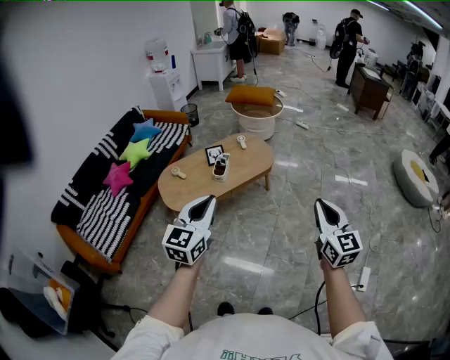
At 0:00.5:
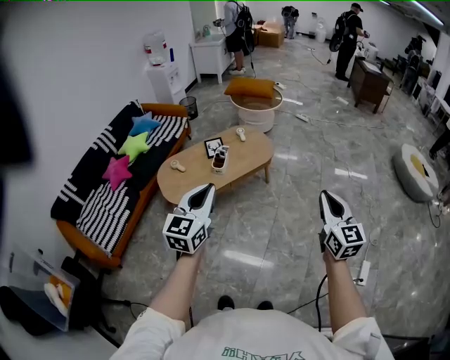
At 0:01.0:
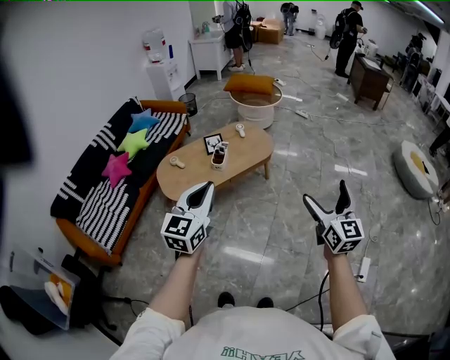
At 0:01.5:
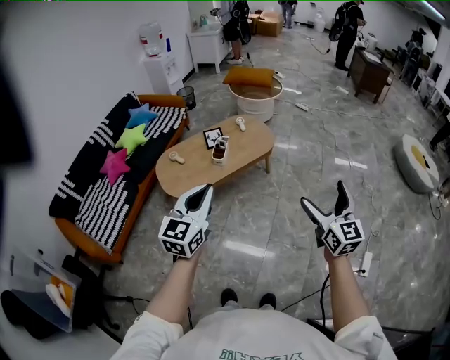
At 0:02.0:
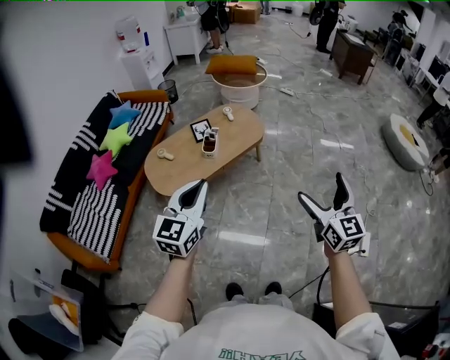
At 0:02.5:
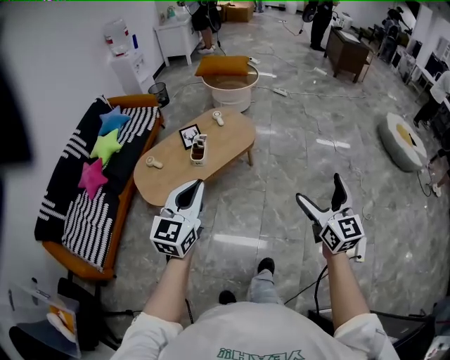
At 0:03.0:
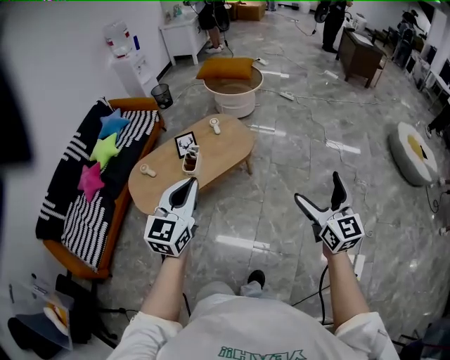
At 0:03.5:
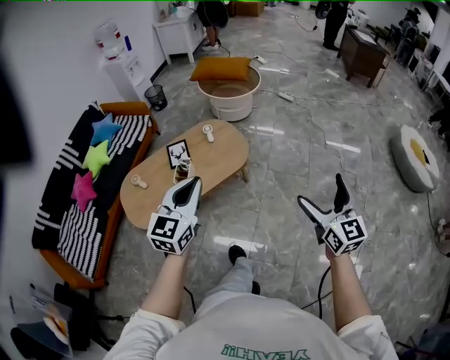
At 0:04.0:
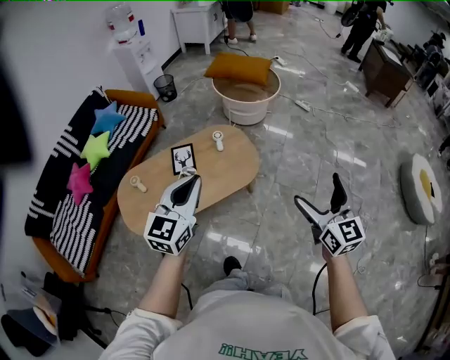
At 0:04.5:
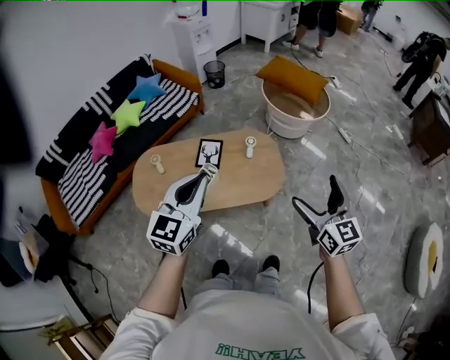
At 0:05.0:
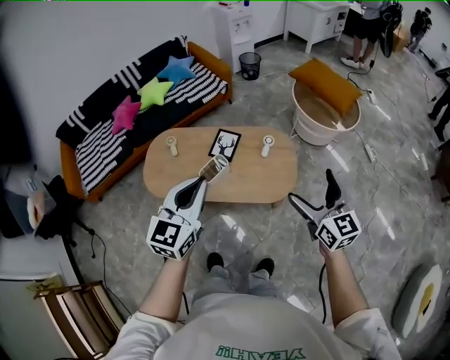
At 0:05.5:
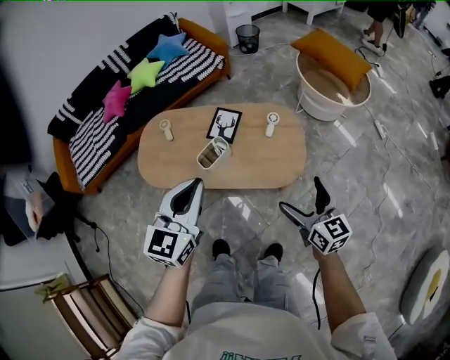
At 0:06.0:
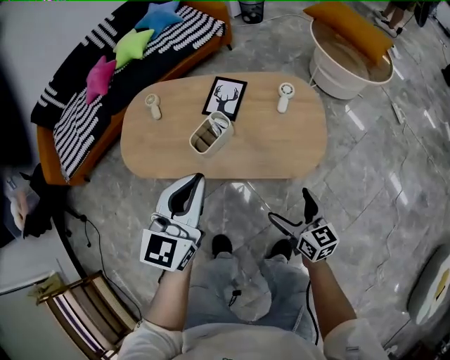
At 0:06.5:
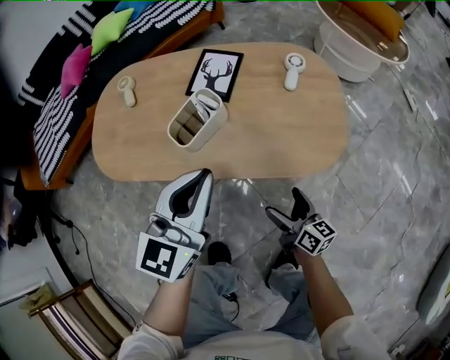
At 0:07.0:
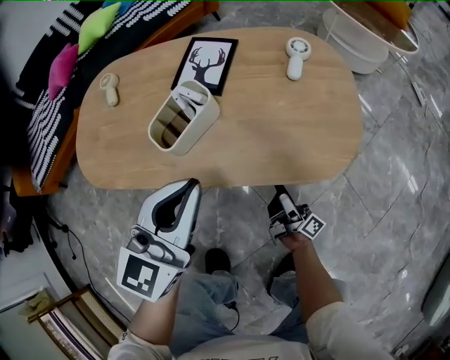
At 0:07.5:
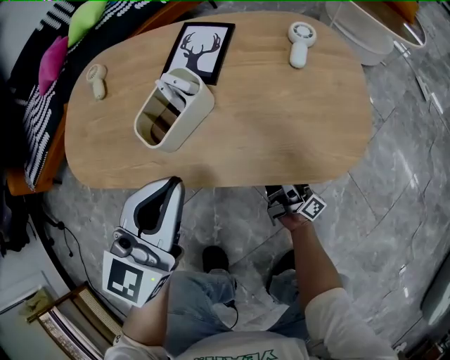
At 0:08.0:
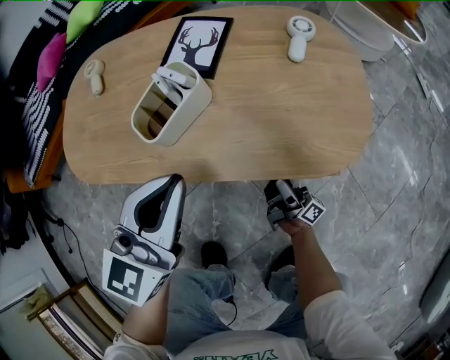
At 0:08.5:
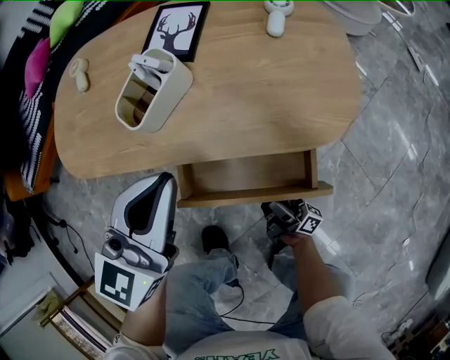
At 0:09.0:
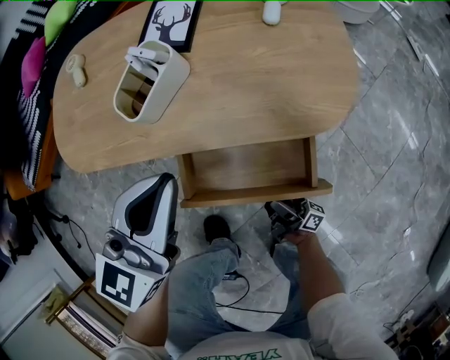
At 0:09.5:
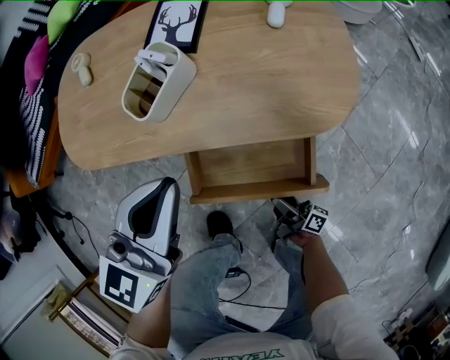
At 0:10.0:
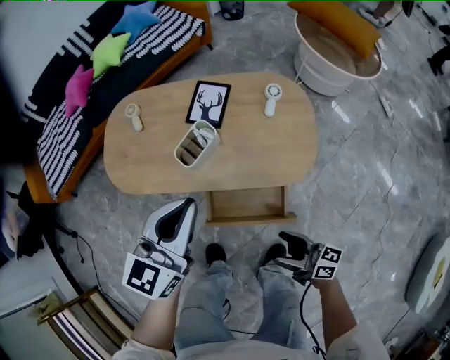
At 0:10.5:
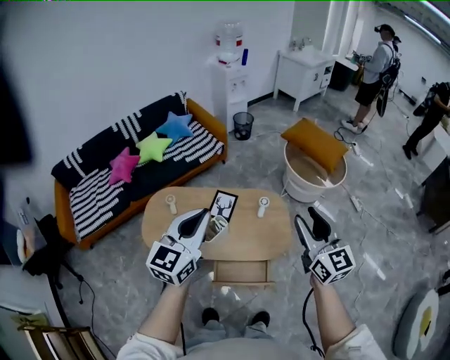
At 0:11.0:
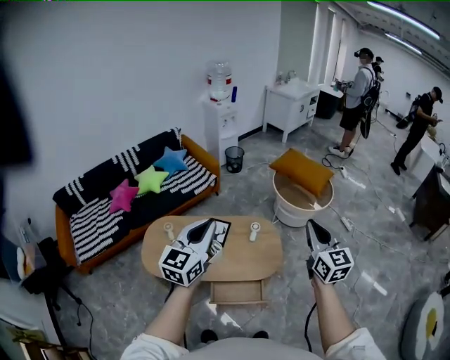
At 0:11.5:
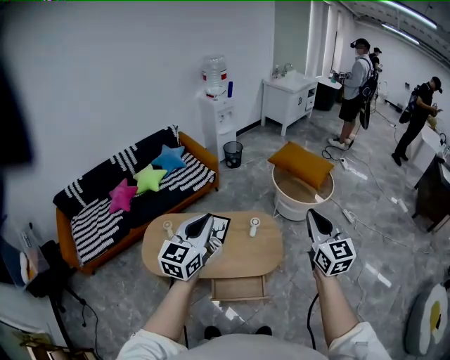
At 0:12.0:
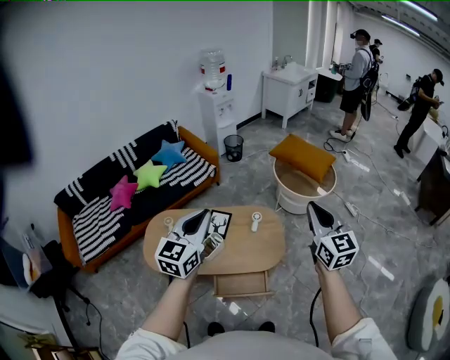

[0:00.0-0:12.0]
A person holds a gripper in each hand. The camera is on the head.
0:00.0 to 0:02.0: The right gripper ends up some 5 cm from where it was, and opens up; the left gripper travels to the left by some 5 cm.
0:02.0 to 0:04.0: The pair of grippers is taken forward, some 50 cm.
0:04.0 to 0:06.0: The right gripper moves downward, some 40 cm, and rotates approximately 50 degrees, while the left gripper shifts roughly 25 cm downward, and swivels about 30 degrees.
0:06.0 to 0:08.0: The grippers both shift downward by roughly 25 cm. The right gripper points its fingers approximately 40 degrees further upward.
0:08.0 to 0:10.0: The left gripper heads upward, covering about 20 cm; the right gripper is displaced upward and backward by about 35 cm, and swivels about 50 degrees.
0:10.0 to 0:12.0: The left gripper heads upward, covering about 30 cm; the right gripper goes roughly 50 cm upward, rotates some 70 degrees, and closes up.

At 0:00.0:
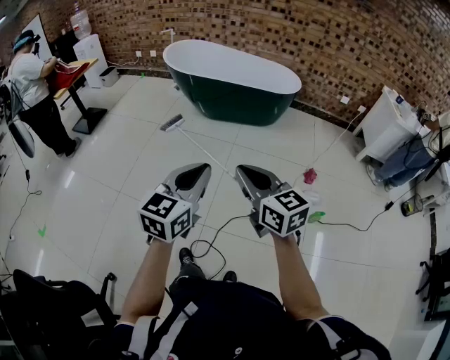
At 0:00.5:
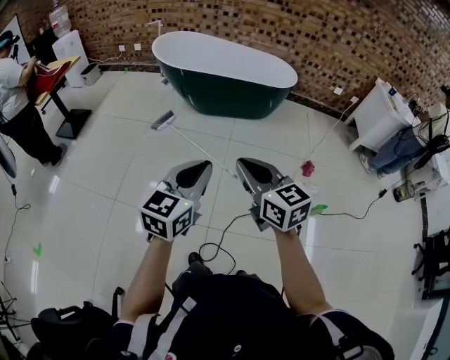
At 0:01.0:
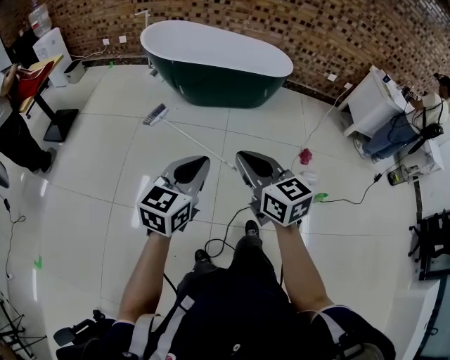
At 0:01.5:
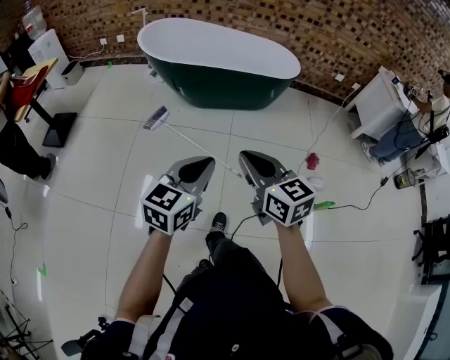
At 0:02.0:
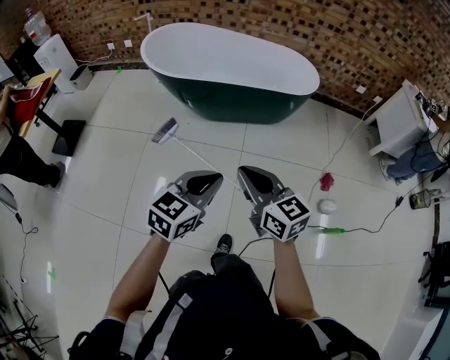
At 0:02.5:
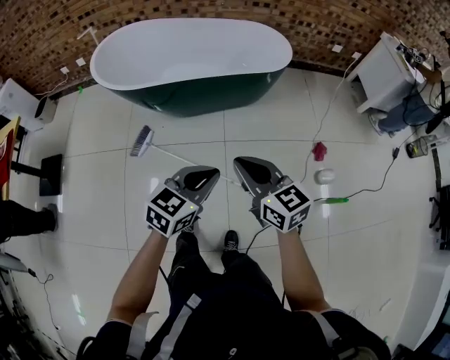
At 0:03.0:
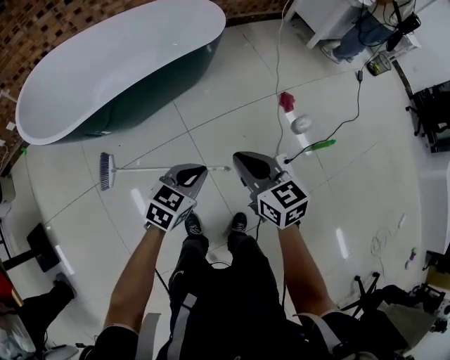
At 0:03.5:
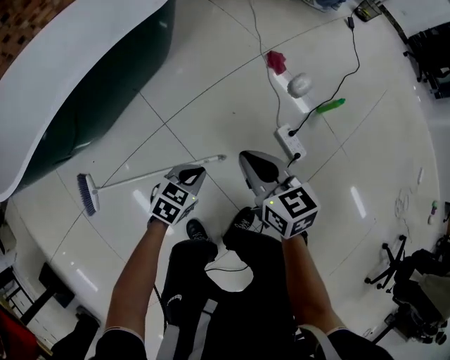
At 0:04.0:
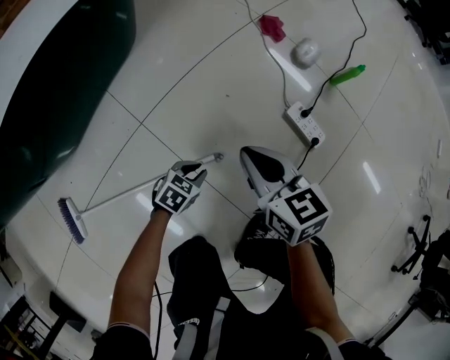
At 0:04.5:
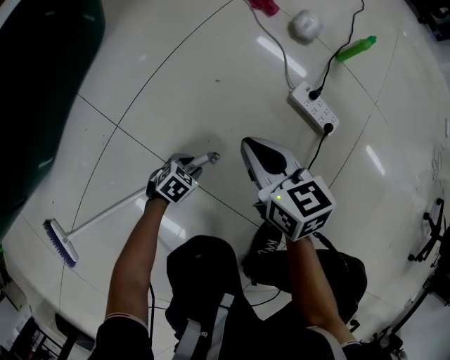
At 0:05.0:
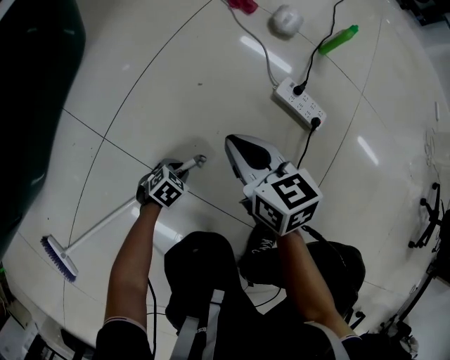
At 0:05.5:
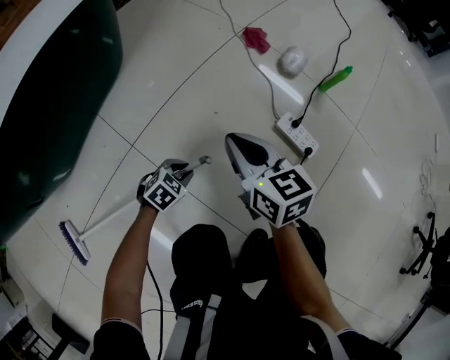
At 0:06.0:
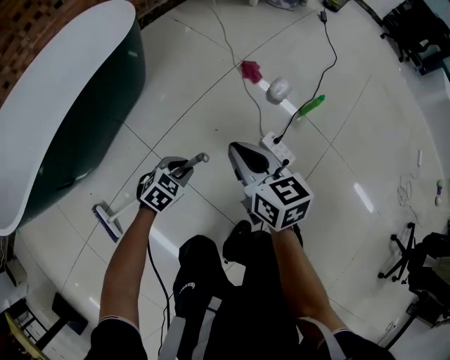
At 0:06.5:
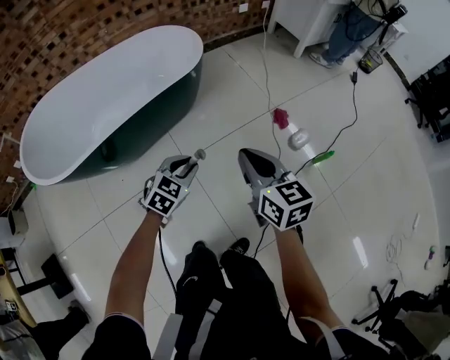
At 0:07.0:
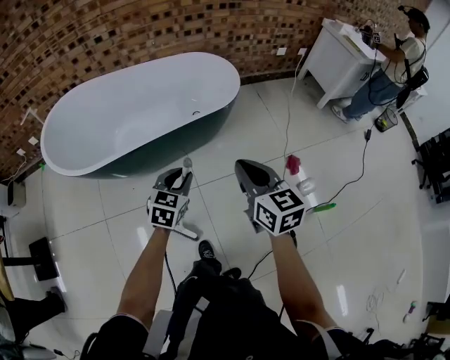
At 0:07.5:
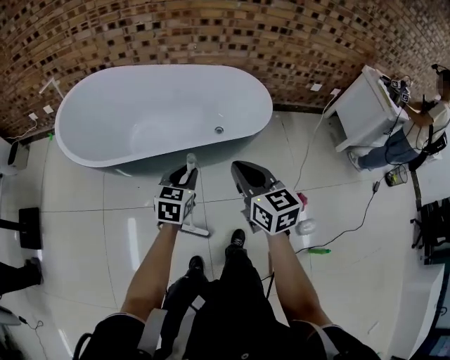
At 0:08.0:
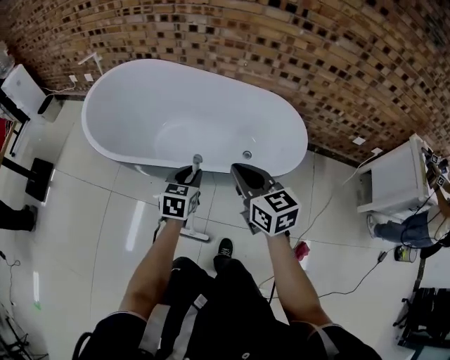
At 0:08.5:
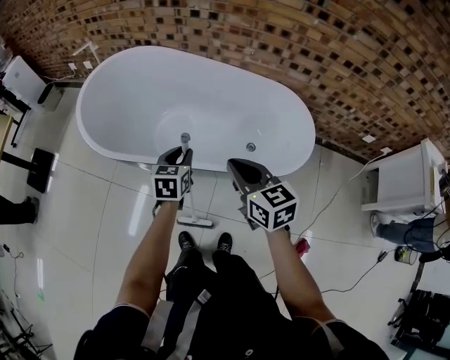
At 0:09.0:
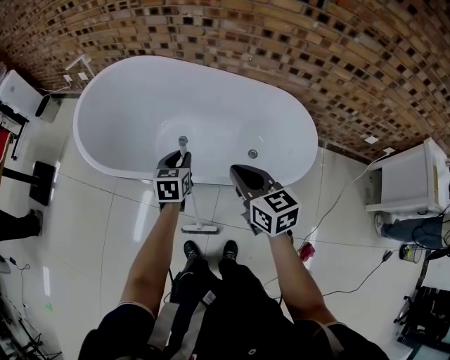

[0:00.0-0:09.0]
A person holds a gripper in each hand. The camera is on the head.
0:00.0 to 0:02.0: The two grippers go about 35 cm forward. The left gripper turns by some 20 degrees.
0:02.0 to 0:04.5: The two grippers go roughly 80 cm downward. The left gripper points its fingers some 40 degrees further downward, and opens. The right gripper turns by some 70 degrees.
0:04.5 to 0:07.0: Both grippers travel together upward, about 70 cm. The left gripper swivels approximately 70 degrees; the right gripper rotates roughly 40 degrees.
0:07.0 to 0:09.0: The right gripper moves approximately 40 cm, and rotates approximately 40 degrees, while the left gripper shifts by about 35 cm, and swivels about 50 degrees.

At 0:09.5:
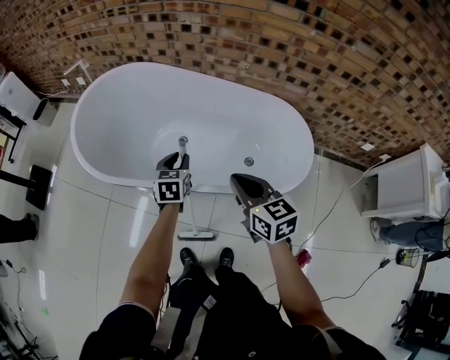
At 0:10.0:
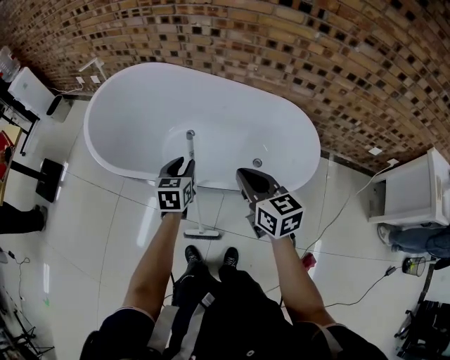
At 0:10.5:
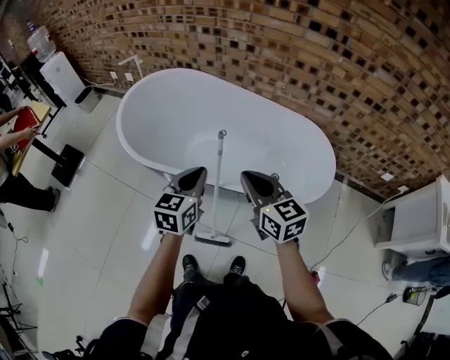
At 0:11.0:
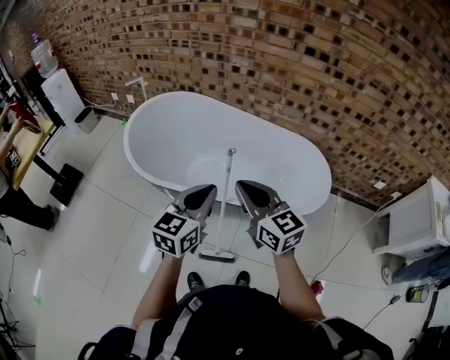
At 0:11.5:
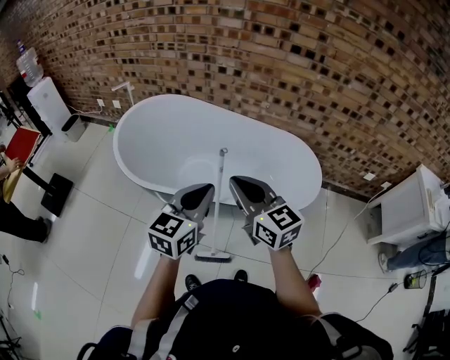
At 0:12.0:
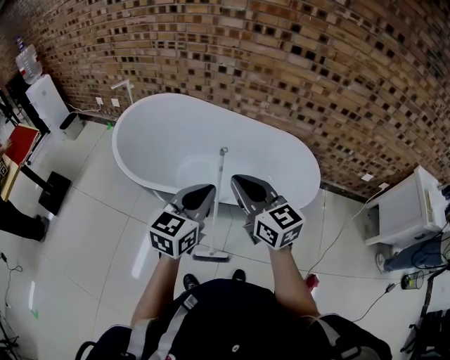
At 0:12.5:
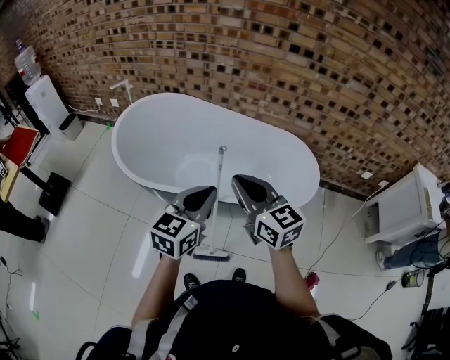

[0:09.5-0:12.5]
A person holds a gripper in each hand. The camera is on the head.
0:09.5 to 0:11.0: The left gripper goes roughly 30 cm upward and backward, rotates approximately 30 degrees, and closes up; the right gripper shifts about 20 cm upward, to the left and backward, and changes its angle by about 20 degrees.
0:11.0 to 0:12.5: There are only small adjustments of the grippers.

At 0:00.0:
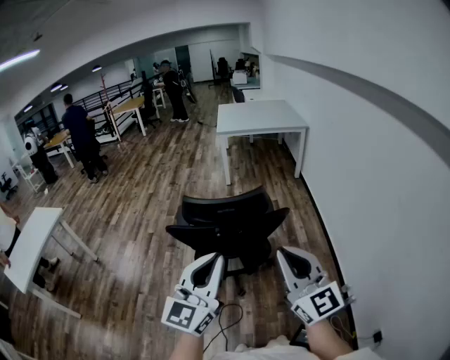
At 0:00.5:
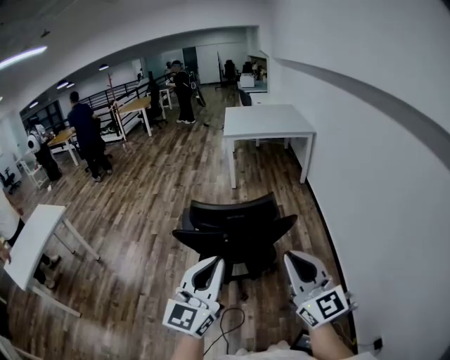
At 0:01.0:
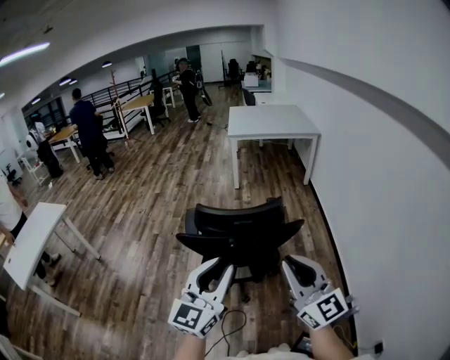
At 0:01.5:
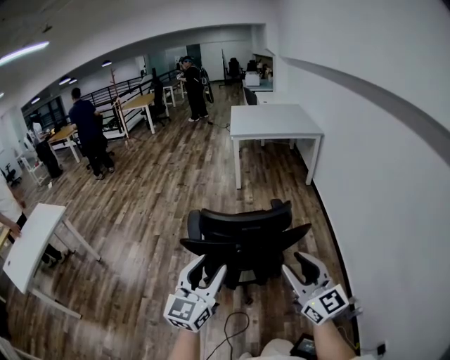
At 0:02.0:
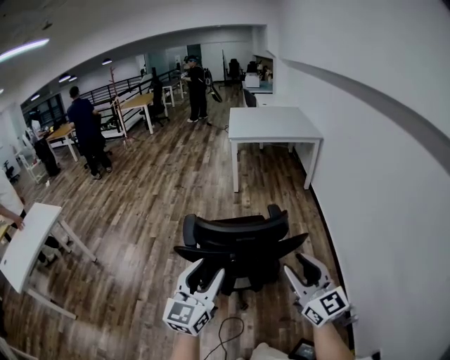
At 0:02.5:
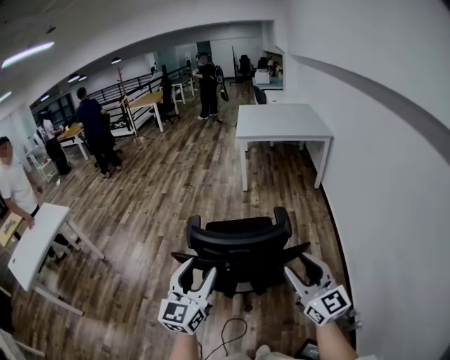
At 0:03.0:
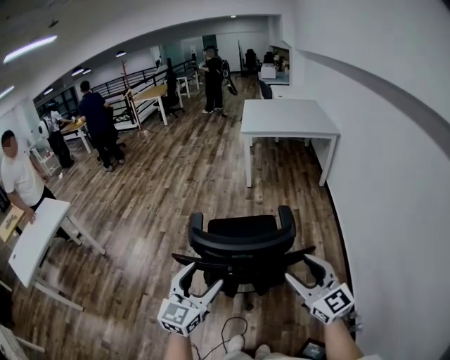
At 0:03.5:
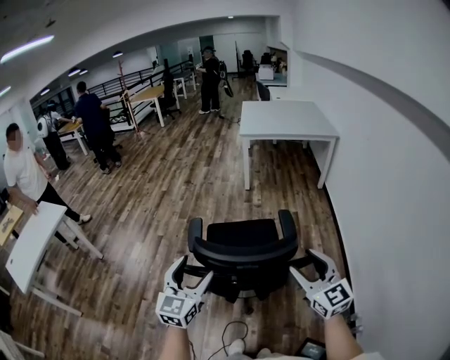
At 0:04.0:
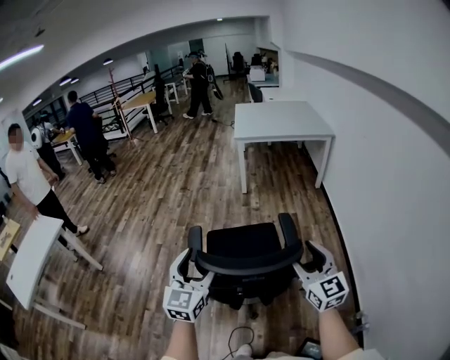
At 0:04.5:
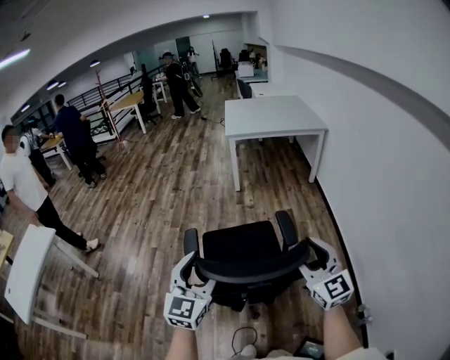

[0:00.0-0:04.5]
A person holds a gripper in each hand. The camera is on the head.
0:00.0 to 0:02.0: The left gripper travels forward, downward and to the left by approximately 15 cm, and opens its fingers. The right gripper travels forward and downward by approximately 10 cm, and opens up.
0:02.0 to 0:04.5: Both grippers travel together forward, approximately 20 cm.
